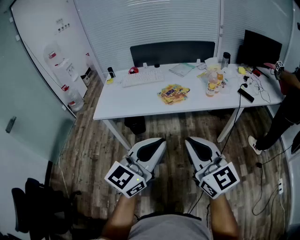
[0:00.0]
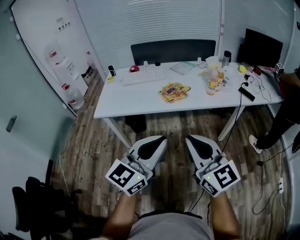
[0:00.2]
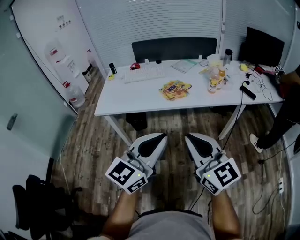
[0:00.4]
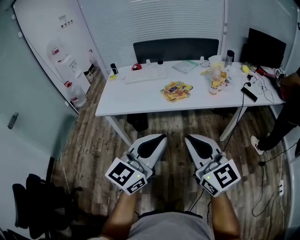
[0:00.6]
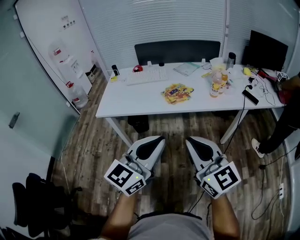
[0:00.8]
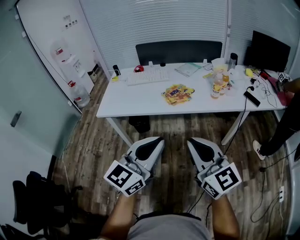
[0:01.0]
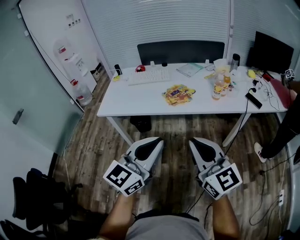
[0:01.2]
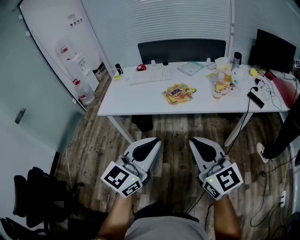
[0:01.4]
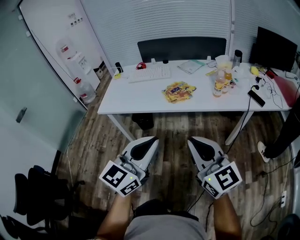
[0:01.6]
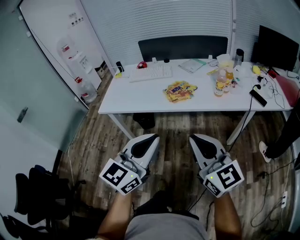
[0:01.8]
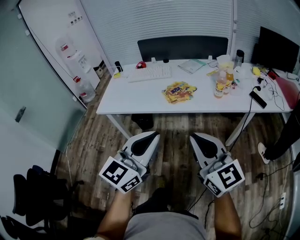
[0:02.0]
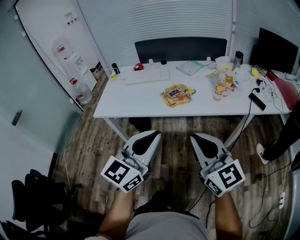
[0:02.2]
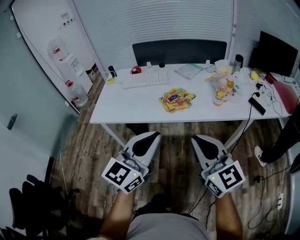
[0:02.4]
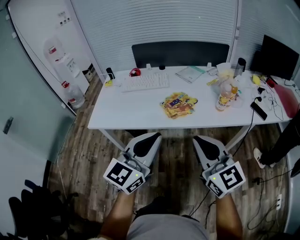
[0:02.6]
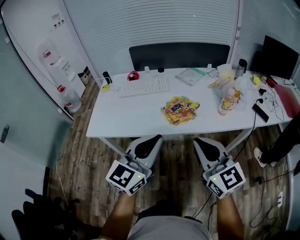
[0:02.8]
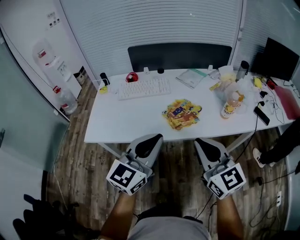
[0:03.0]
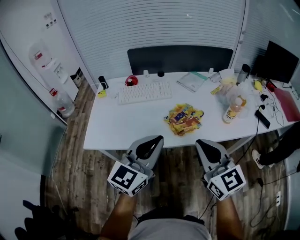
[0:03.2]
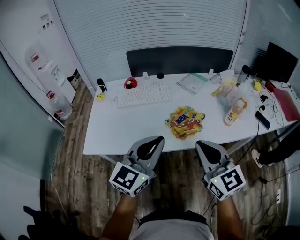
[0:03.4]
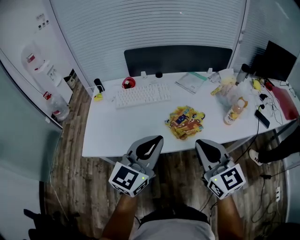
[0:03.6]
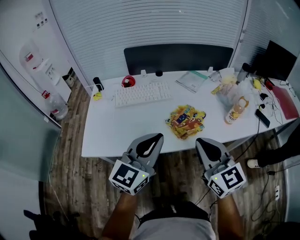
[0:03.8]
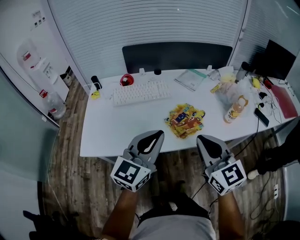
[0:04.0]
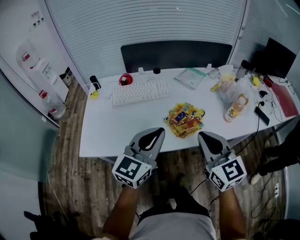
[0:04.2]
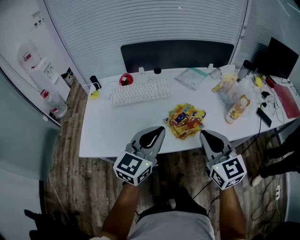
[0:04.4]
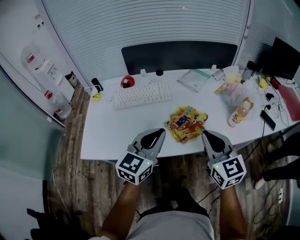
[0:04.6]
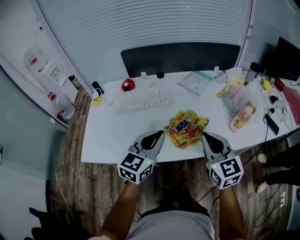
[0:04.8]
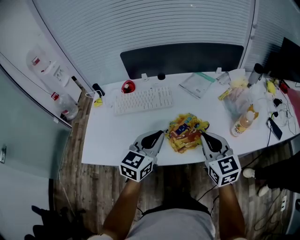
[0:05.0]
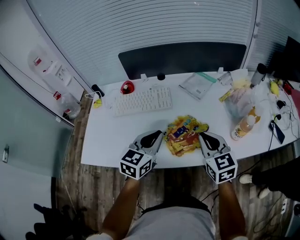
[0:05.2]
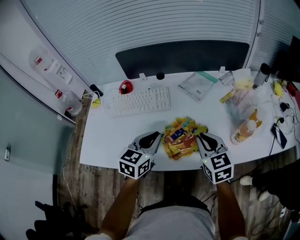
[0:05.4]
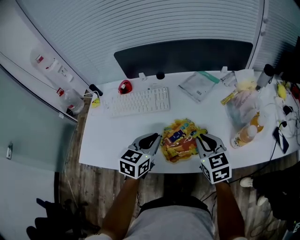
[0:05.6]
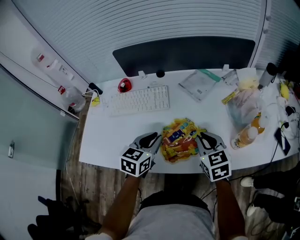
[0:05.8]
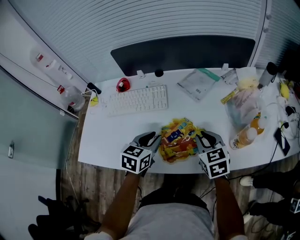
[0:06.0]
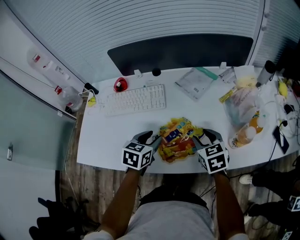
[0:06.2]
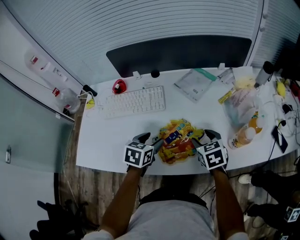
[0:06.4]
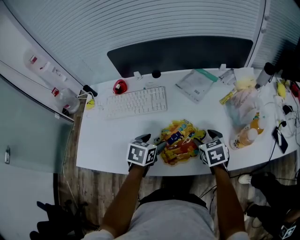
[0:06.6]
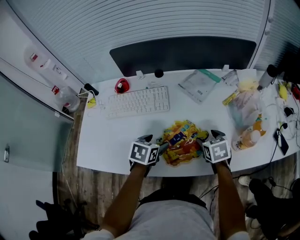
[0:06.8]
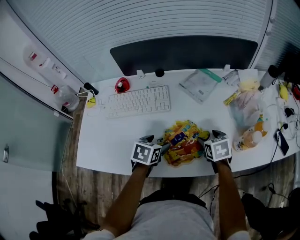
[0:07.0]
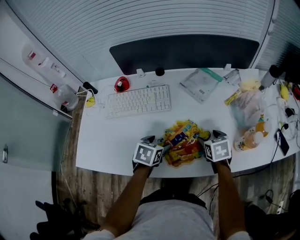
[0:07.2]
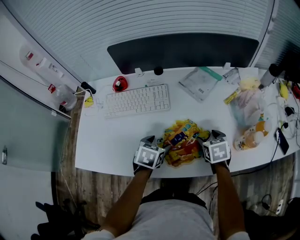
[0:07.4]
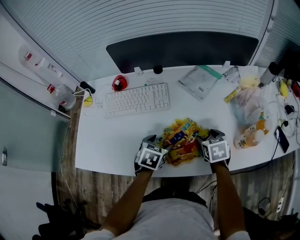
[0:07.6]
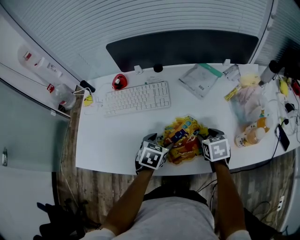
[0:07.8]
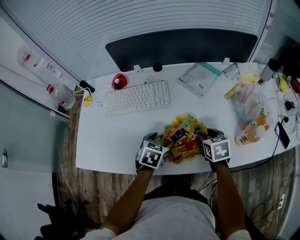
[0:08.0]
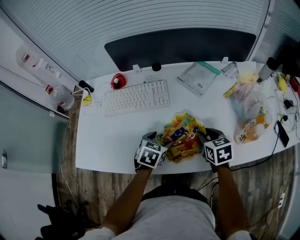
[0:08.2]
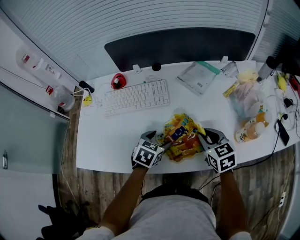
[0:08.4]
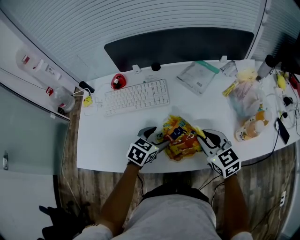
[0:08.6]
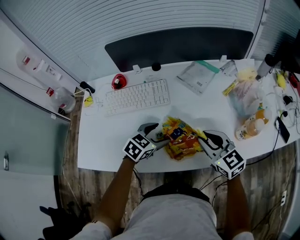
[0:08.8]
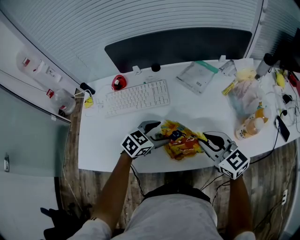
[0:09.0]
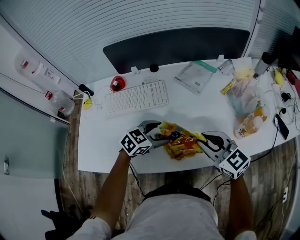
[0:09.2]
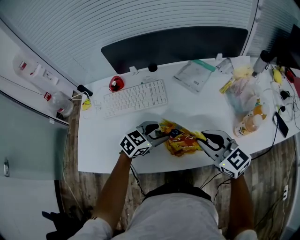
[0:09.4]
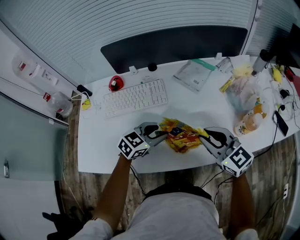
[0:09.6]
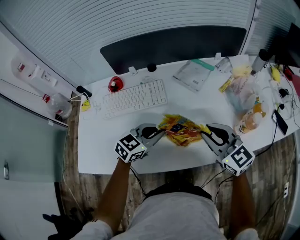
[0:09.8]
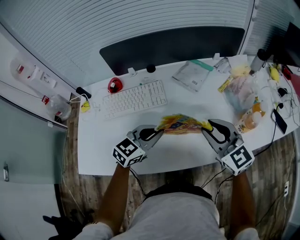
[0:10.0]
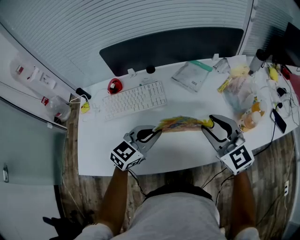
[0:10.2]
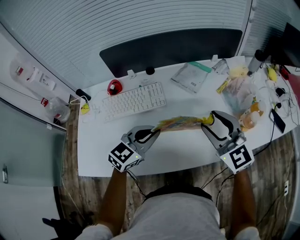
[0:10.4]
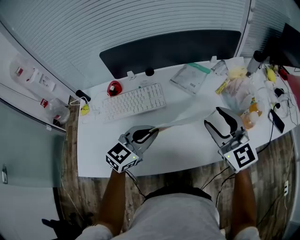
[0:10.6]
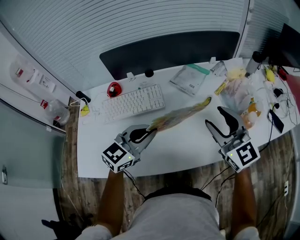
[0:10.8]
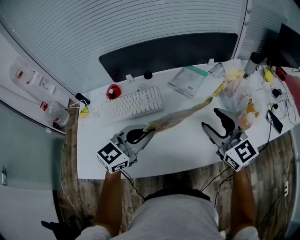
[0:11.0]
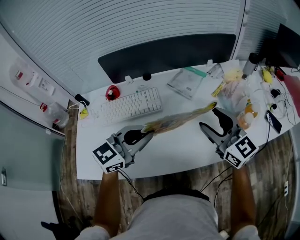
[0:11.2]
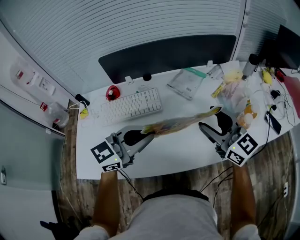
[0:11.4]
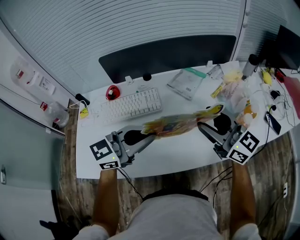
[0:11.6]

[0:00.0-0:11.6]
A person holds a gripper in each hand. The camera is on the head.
0:00.0 to 0:01.4: The right gripper changes place by about 5 cm.
0:01.4 to 0:02.8: Both grippers move forward, some 20 cm.
0:02.8 to 0:04.4: The grippers both shift forward by approximately 15 cm.
0:04.4 to 0:05.8: The left gripper is displaced forward and downward by roughly 20 cm, and turns by some 30 degrees. The right gripper is displaced forward, downward and to the right by approximately 25 cm, and turns by approximately 20 degrees.
0:05.8 to 0:07.2: The grippers both shift downward by some 10 cm. The left gripper turns by about 20 degrees, and opens up. The right gripper changes its angle by about 30 degrees, and opens its fingers.
0:07.2 to 0:08.8: The left gripper changes its angle by approximately 30 degrees; the right gripper is displaced upward and backward by some 15 cm, points its fingers roughly 30 degrees further upward, and closes.
0:08.8 to 0:10.2: The two grippers go approximately 10 cm upward. The left gripper turns by approximately 20 degrees, and closes up.
0:10.2 to 0:11.6: The right gripper moves upward, about 5 cm, rotates roughly 30 degrees, and opens. Meanwhile the left gripper moves upward, about 10 cm, and swivels some 20 degrees.

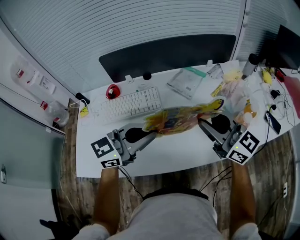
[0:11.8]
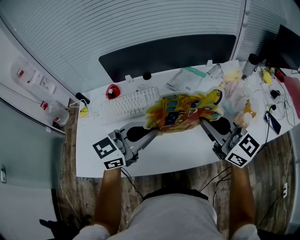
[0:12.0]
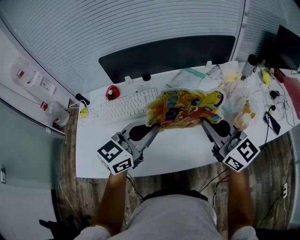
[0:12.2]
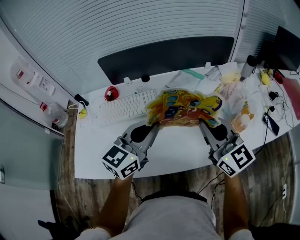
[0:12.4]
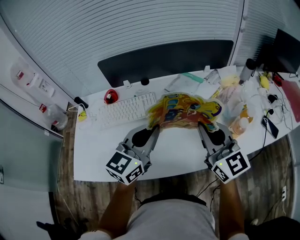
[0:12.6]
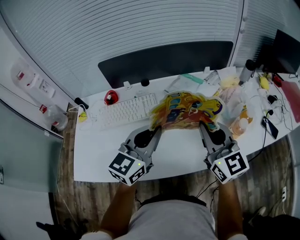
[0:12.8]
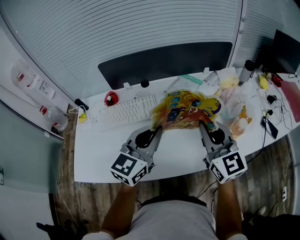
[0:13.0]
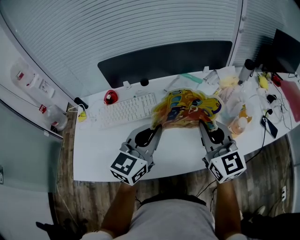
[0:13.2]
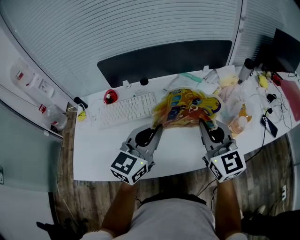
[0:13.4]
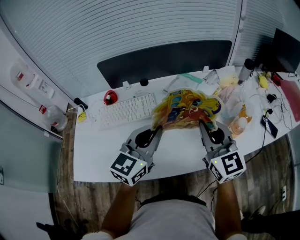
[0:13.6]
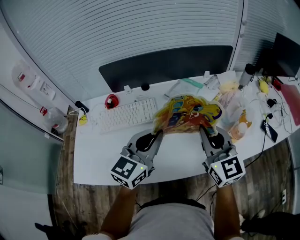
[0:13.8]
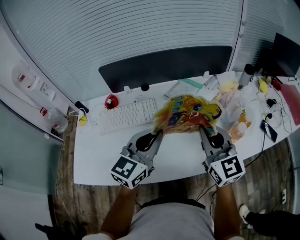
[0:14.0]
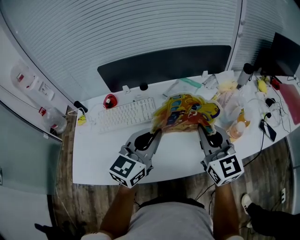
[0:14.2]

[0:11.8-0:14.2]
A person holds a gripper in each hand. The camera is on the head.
0:11.8 to 0:13.0: The left gripper turns by approximately 30 degrees; the right gripper turns by approximately 30 degrees, and closes.
0:13.0 to 0:14.2: Both grippers stay put.

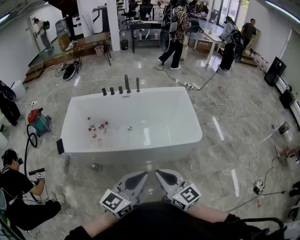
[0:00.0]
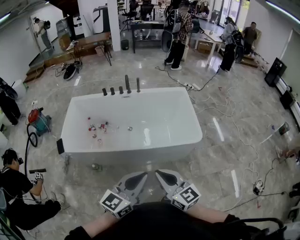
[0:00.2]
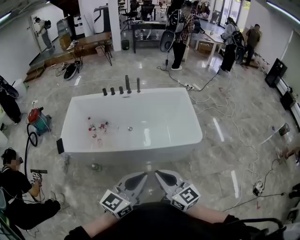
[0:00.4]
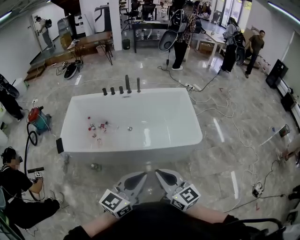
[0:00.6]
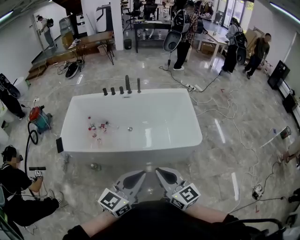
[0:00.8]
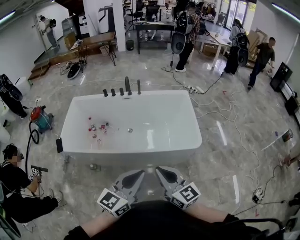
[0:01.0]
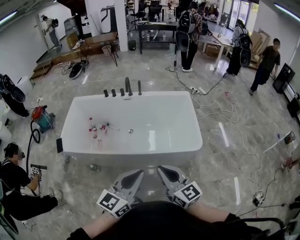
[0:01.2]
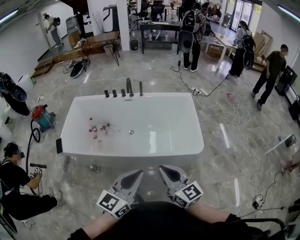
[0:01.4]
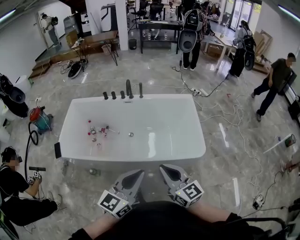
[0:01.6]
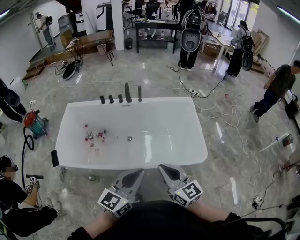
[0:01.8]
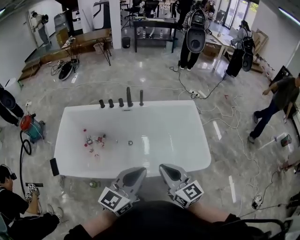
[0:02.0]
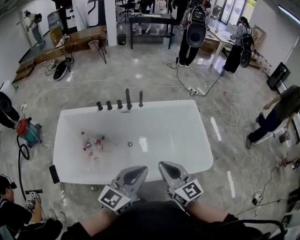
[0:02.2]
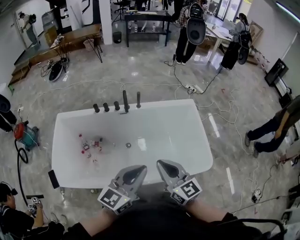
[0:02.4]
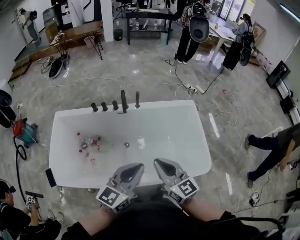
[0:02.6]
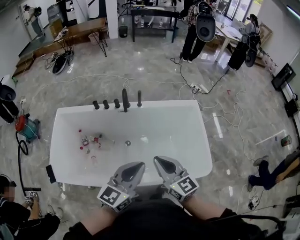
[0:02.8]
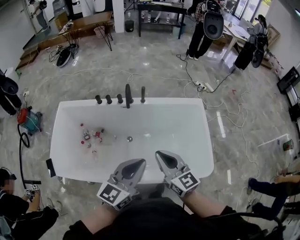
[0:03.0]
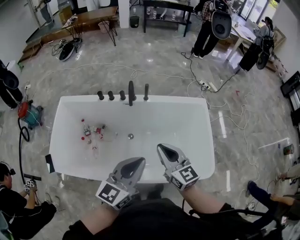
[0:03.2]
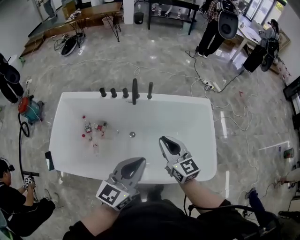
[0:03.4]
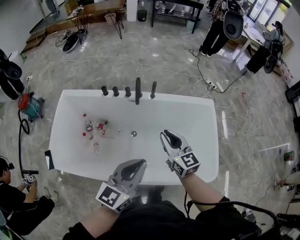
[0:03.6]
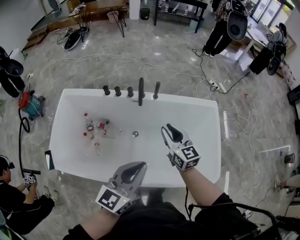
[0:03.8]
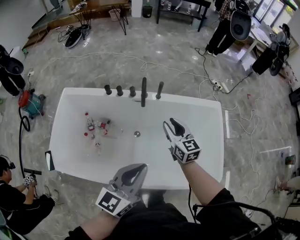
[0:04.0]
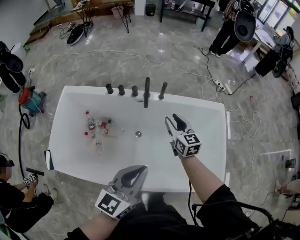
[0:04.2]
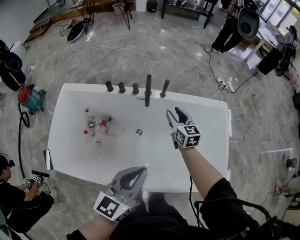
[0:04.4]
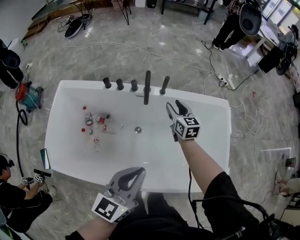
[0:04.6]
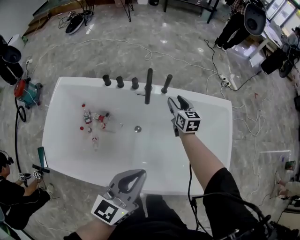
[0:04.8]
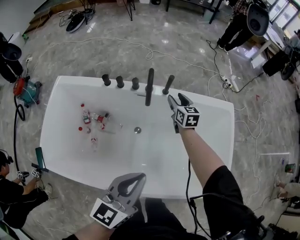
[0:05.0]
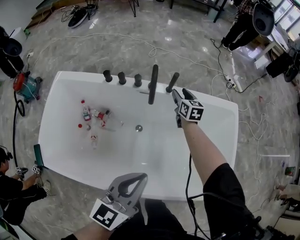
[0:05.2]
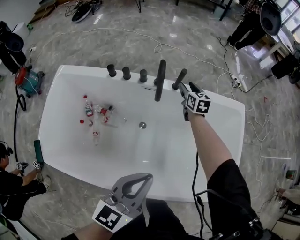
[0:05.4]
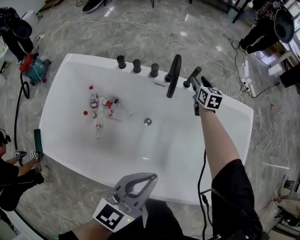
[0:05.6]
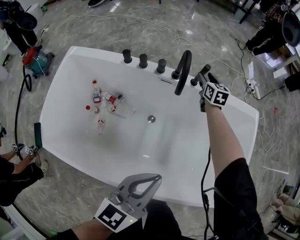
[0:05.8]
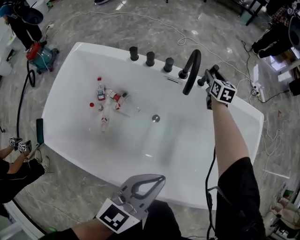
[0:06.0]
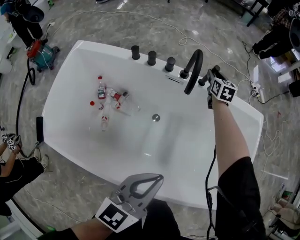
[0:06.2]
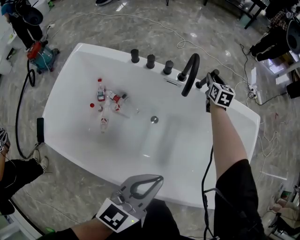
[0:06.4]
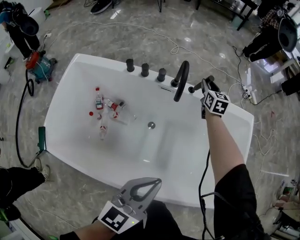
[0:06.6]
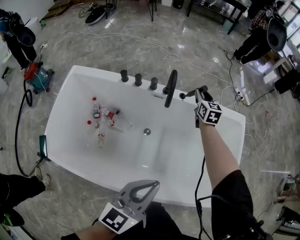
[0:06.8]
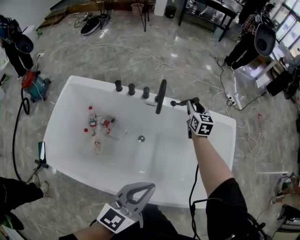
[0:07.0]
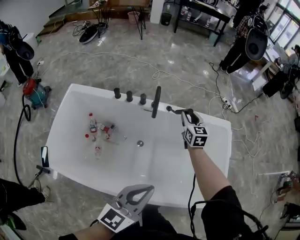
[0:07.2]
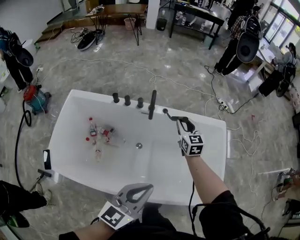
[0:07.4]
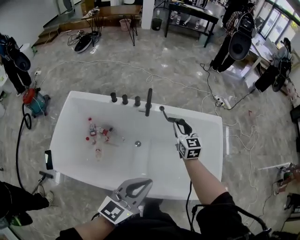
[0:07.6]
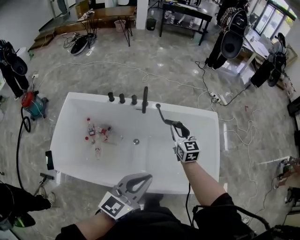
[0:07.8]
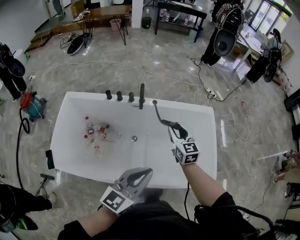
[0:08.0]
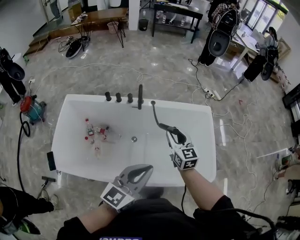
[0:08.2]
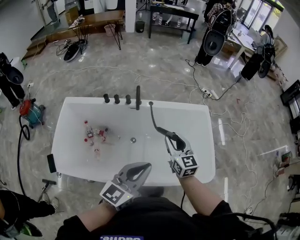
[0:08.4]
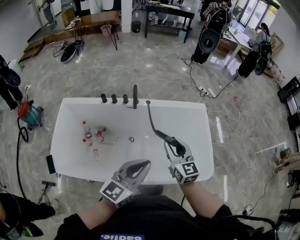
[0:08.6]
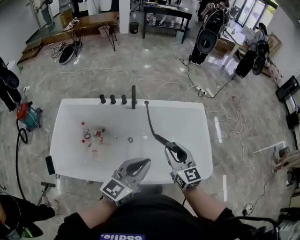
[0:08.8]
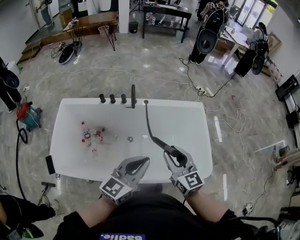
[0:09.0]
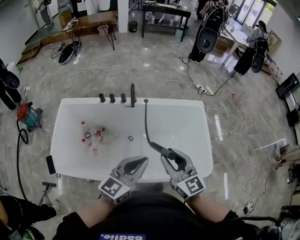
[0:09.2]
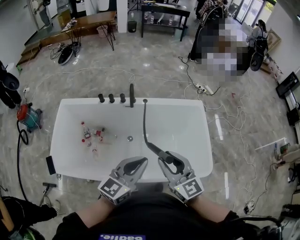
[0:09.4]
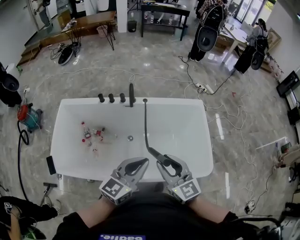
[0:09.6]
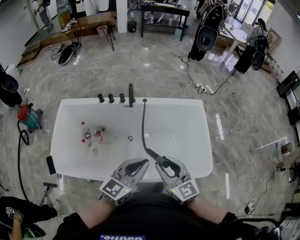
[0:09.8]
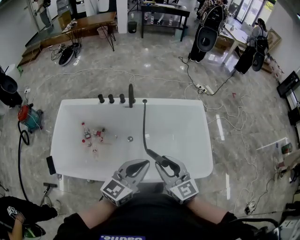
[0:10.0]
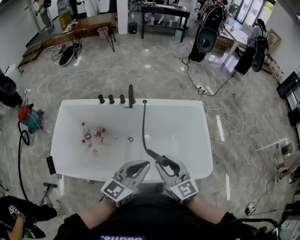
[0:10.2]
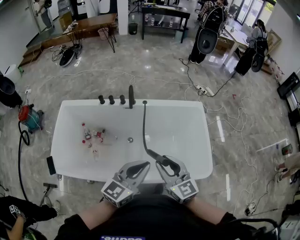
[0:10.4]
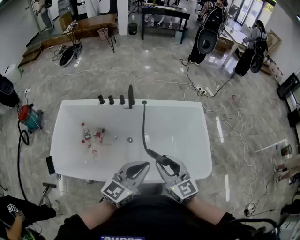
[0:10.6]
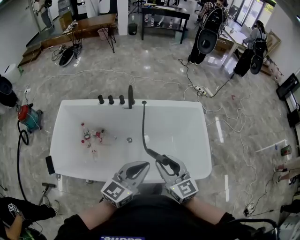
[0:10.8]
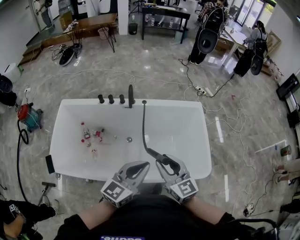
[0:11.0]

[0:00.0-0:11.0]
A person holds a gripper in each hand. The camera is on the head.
0:00.0 to 0:01.6: The right gripper heads forward and to the right, covering approximately 15 cm. Meanwhile the left gripper moves forward, about 15 cm.
0:01.6 to 0:03.2: The grippers both shift forward by about 40 cm.
0:03.2 to 0:04.8: The left gripper heads downward, forward and to the left, covering some 20 cm; the right gripper heads forward and downward, covering some 40 cm, and opens up.
0:04.8 to 0:06.2: The right gripper goes approximately 20 cm forward and downward. Meanwhile the left gripper goes roughly 10 cm downward.
0:06.2 to 0:07.8: The right gripper is displaced backward and upward by roughly 40 cm. Meanwhile the left gripper shifts approximately 25 cm upward and backward.
0:07.8 to 0:09.4: The right gripper shifts roughly 30 cm backward and upward. Meanwhile the left gripper ends up some 5 cm from where it was.
0:09.4 to 0:11.0: The grippers move only a little.
